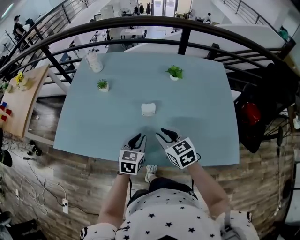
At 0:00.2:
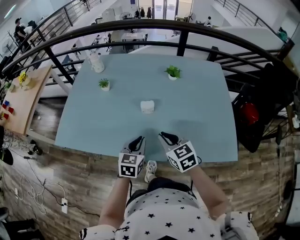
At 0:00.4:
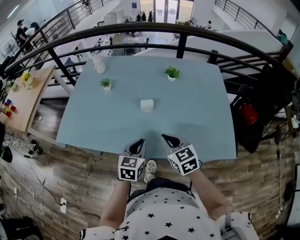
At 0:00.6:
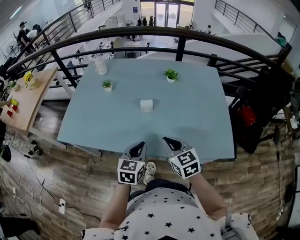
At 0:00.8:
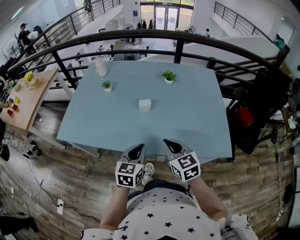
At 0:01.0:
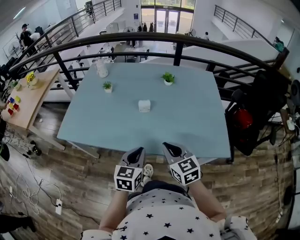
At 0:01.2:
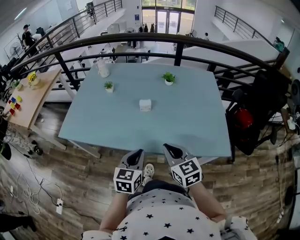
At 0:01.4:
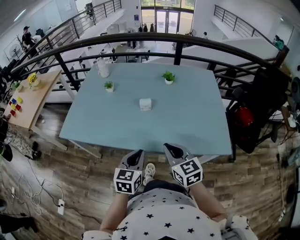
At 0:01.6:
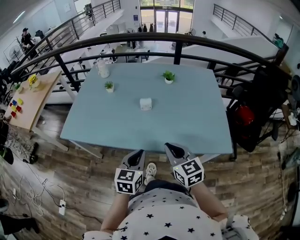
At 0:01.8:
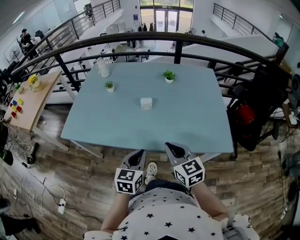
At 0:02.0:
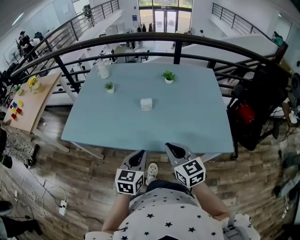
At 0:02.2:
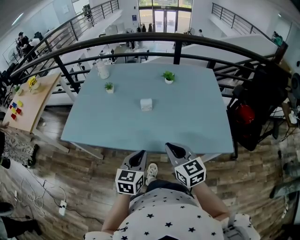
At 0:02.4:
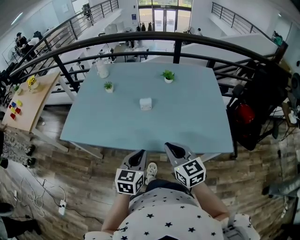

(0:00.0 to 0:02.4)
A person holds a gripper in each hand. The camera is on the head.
0:00.0 - 0:01.2: The left gripper goes approximately 20 cm backward and upward. Meanwhile the right gripper is displaced backward by roughly 20 cm, and closes its fingers.
0:01.2 - 0:02.4: The grippers move only a little.

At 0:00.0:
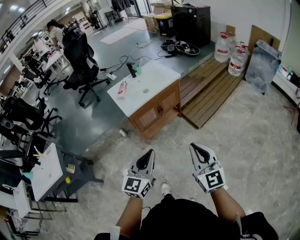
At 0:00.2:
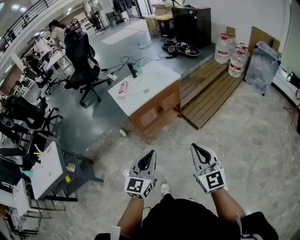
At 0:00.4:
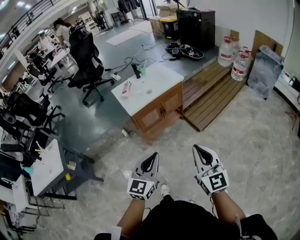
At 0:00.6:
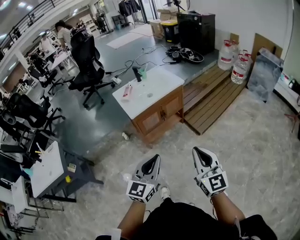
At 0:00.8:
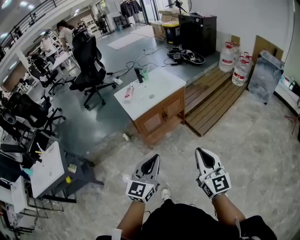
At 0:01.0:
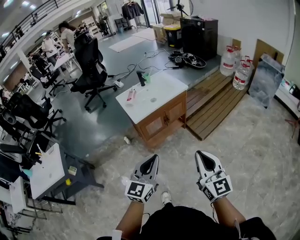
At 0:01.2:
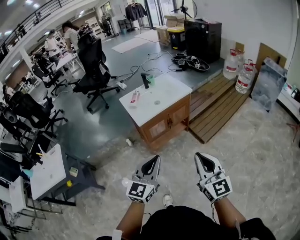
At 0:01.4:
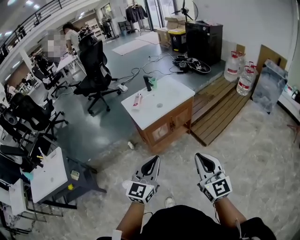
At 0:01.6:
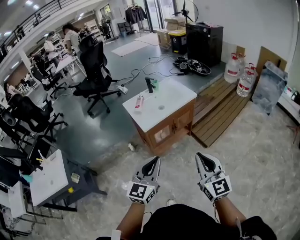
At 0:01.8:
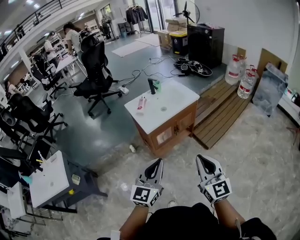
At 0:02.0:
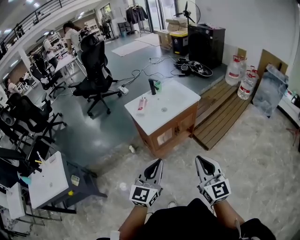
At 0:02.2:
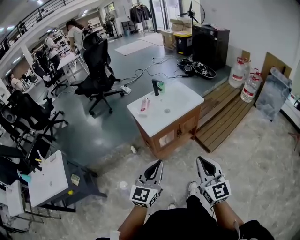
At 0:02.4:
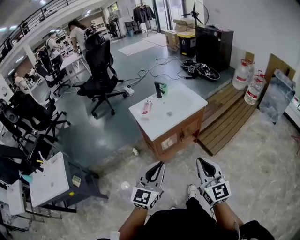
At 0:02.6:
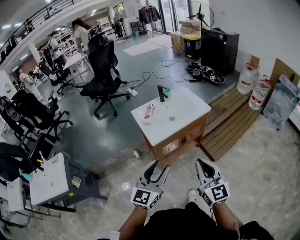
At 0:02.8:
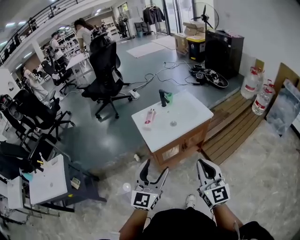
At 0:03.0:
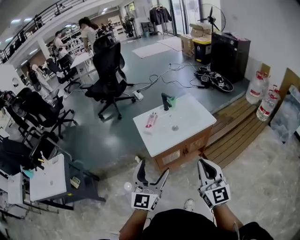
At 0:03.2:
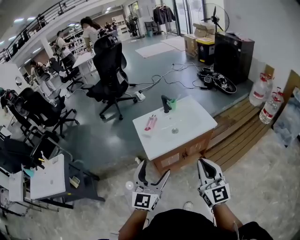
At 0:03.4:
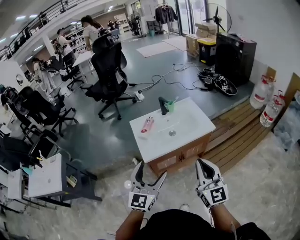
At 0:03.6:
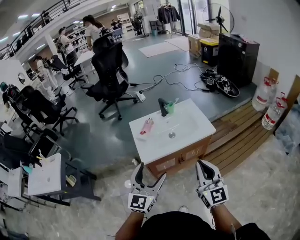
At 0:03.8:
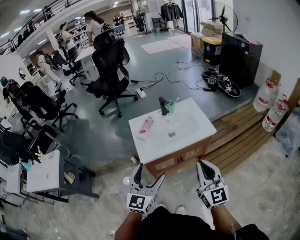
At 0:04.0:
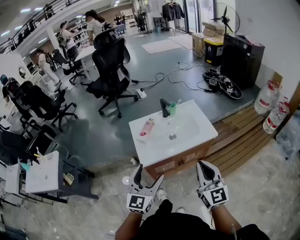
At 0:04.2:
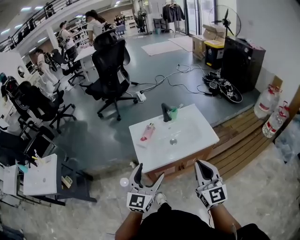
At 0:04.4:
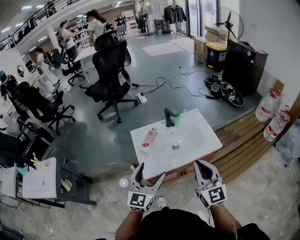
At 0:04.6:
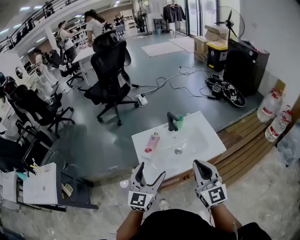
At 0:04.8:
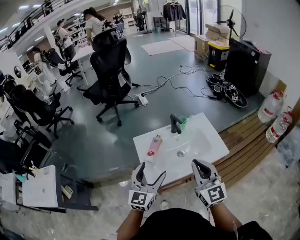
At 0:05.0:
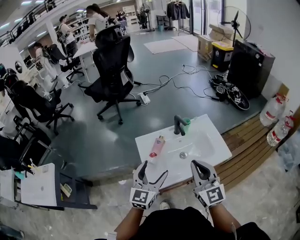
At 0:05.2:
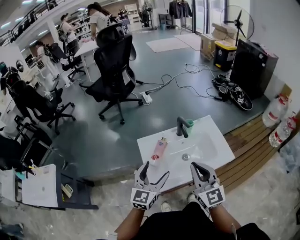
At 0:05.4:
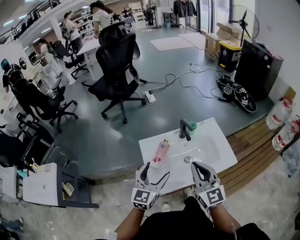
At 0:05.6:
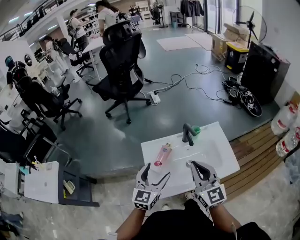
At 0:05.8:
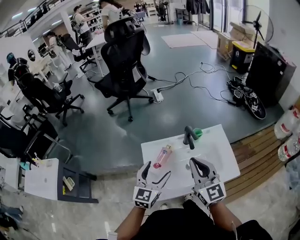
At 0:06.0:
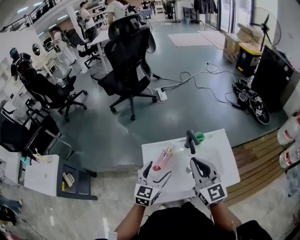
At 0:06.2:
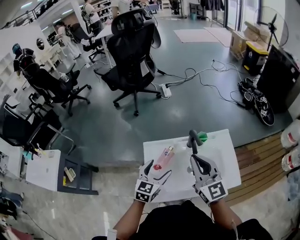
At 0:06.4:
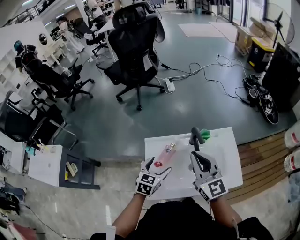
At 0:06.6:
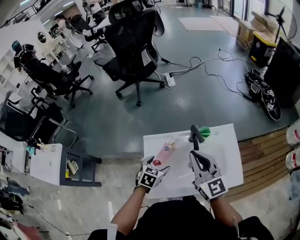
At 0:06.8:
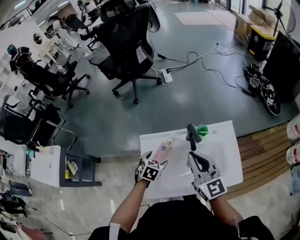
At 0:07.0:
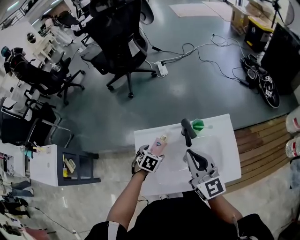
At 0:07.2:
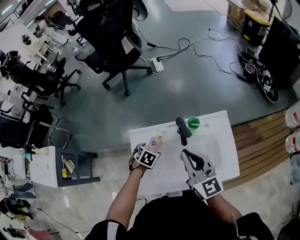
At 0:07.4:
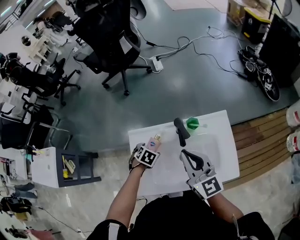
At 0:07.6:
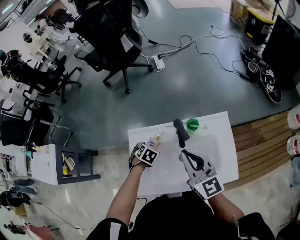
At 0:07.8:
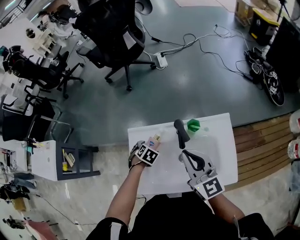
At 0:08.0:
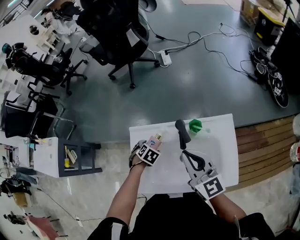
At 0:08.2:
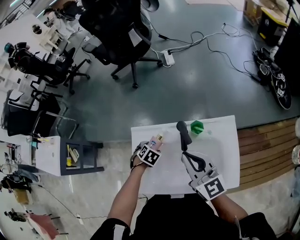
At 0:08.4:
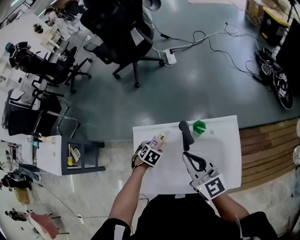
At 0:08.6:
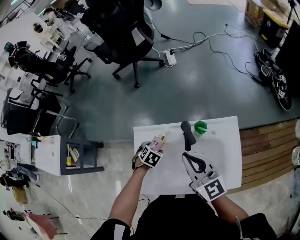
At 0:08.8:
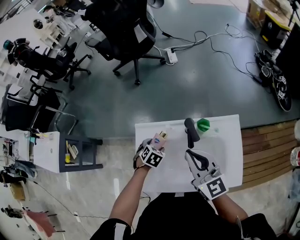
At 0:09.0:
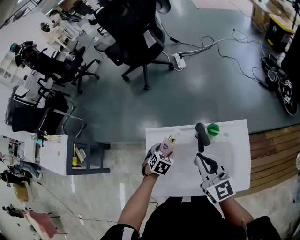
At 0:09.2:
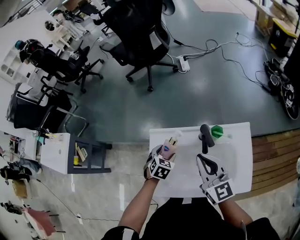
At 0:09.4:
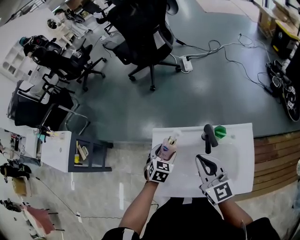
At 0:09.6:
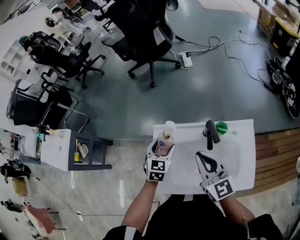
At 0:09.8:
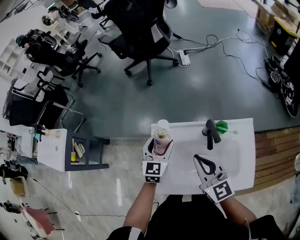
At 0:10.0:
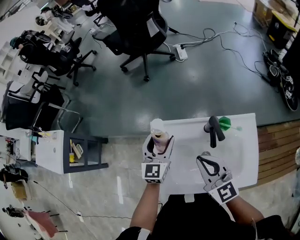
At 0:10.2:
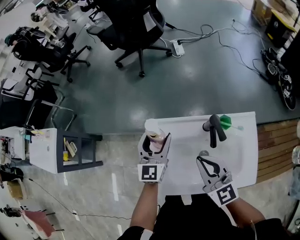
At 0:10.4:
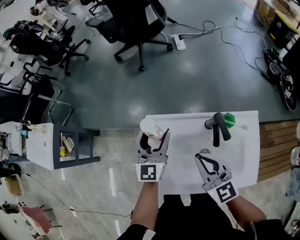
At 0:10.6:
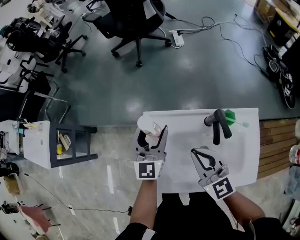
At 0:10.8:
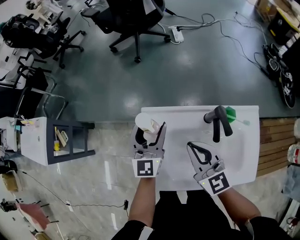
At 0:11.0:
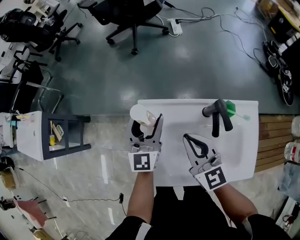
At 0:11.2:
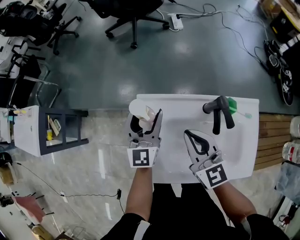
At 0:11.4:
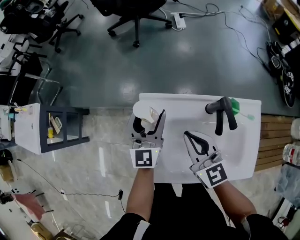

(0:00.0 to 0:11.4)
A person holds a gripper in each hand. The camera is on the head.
0:00.0 - 0:01.4: Both grippers move to the left, approximately 10 cm.
0:01.4 - 0:02.8: Both grippers travel together forward, about 20 cm. The left gripper opens.
0:02.8 - 0:04.2: The two grippers go approximately 20 cm forward.
0:04.2 - 0:05.6: The left gripper heads forward, covering about 25 cm; the right gripper shifts some 30 cm forward and to the left.
0:05.6 - 0:07.2: The right gripper goes about 20 cm forward, to the right and downward. Meanwhile the left gripper shifts about 30 cm downward and forward, and tilts its fingers approximately 60 degrees downward.
0:07.2 - 0:08.6: The grippers stay close to where they were, moving slightly.
0:08.6 - 0:10.0: The right gripper ends up approximately 10 cm from where it was. The left gripper travels upward by roughly 15 cm, and tips its fingers upward by approximately 60 degrees.
0:10.0 - 0:11.4: The right gripper is displaced downward and forward by some 10 cm. The left gripper moves roughly 5 cm.

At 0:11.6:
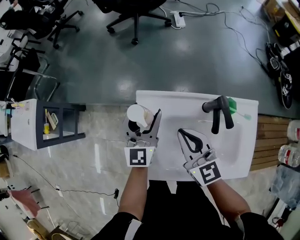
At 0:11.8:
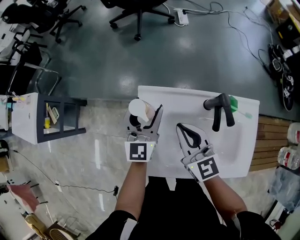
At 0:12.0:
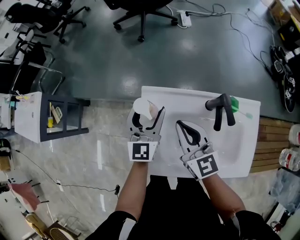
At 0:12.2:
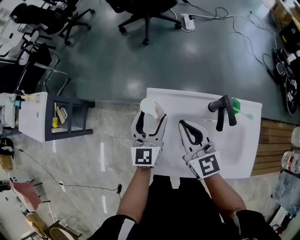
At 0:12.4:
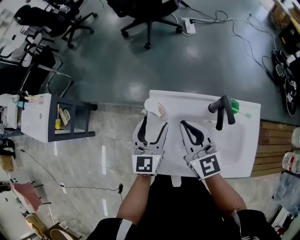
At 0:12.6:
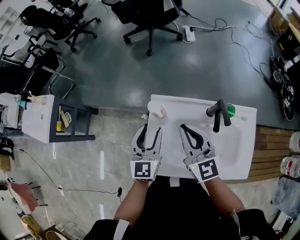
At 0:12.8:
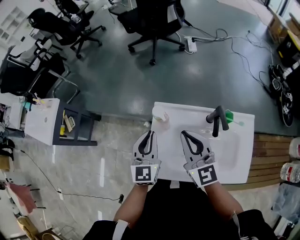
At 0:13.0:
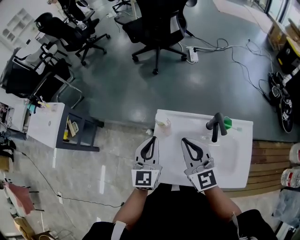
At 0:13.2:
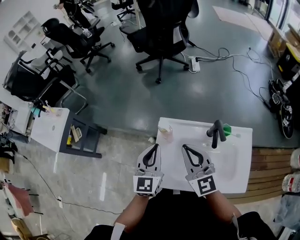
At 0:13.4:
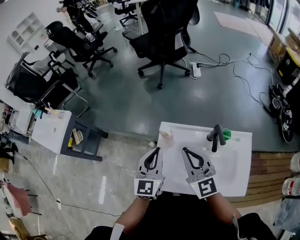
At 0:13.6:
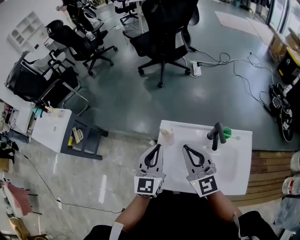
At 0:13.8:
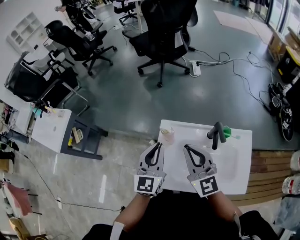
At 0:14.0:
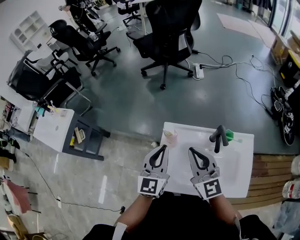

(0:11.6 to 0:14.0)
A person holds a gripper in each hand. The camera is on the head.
0:11.6 - 0:12.8: The right gripper travels upward by approximately 10 cm; the left gripper is displaced backward, upward and to the left by roughly 15 cm, and closes.
0:12.8 - 0:14.0: The left gripper travels upward by approximately 10 cm; the right gripper is displaced upward by roughly 5 cm.

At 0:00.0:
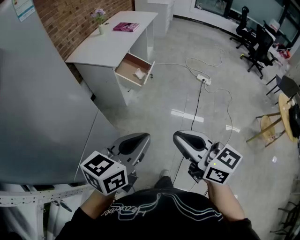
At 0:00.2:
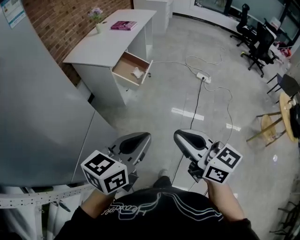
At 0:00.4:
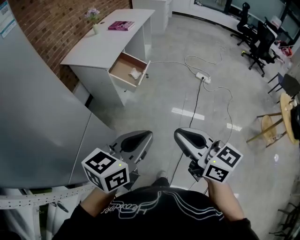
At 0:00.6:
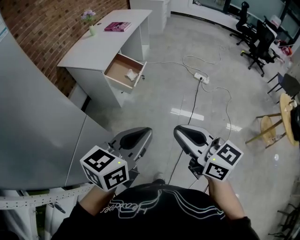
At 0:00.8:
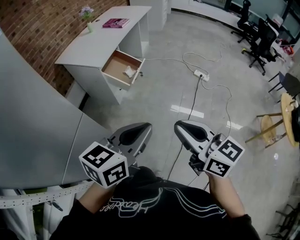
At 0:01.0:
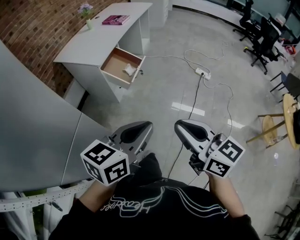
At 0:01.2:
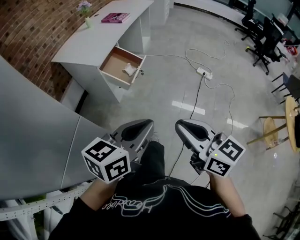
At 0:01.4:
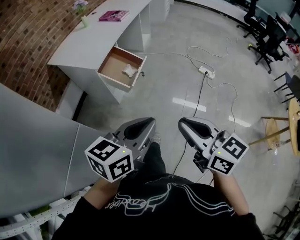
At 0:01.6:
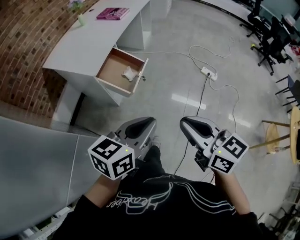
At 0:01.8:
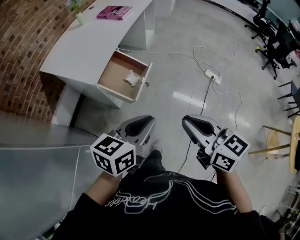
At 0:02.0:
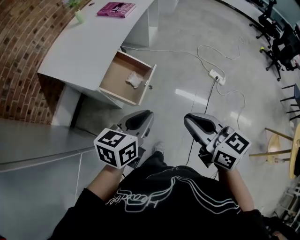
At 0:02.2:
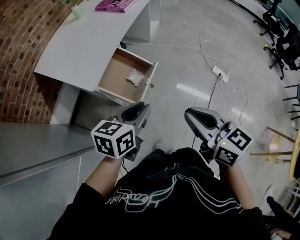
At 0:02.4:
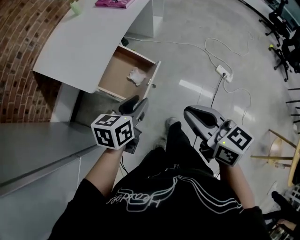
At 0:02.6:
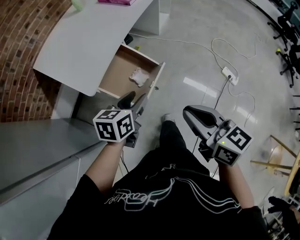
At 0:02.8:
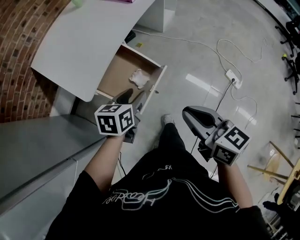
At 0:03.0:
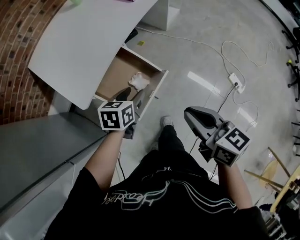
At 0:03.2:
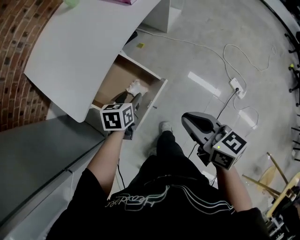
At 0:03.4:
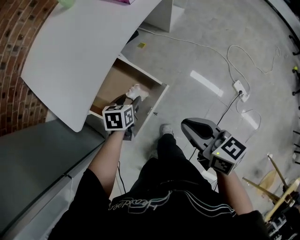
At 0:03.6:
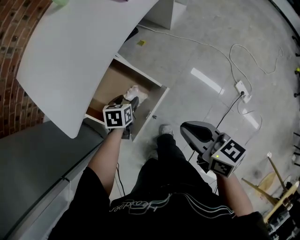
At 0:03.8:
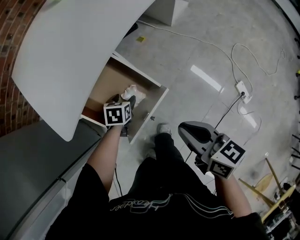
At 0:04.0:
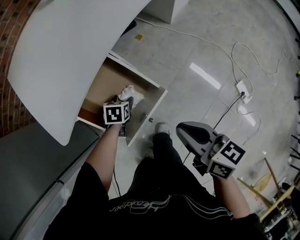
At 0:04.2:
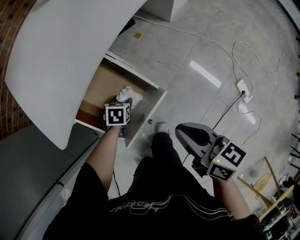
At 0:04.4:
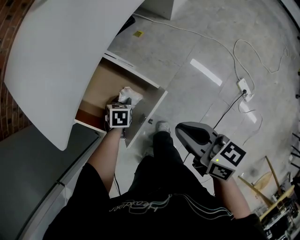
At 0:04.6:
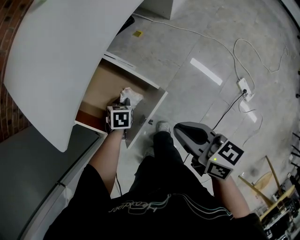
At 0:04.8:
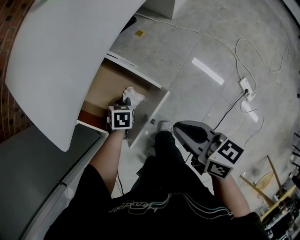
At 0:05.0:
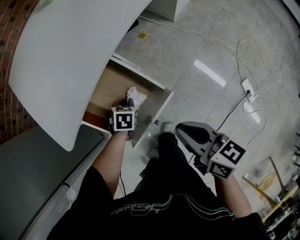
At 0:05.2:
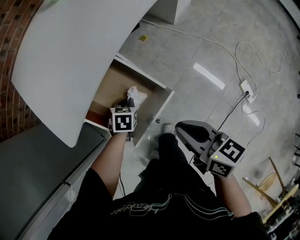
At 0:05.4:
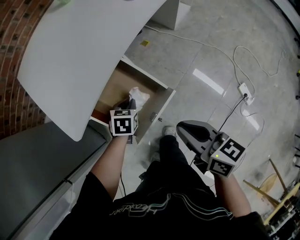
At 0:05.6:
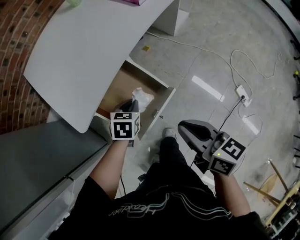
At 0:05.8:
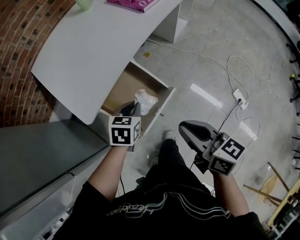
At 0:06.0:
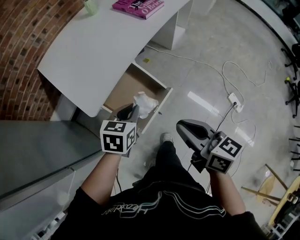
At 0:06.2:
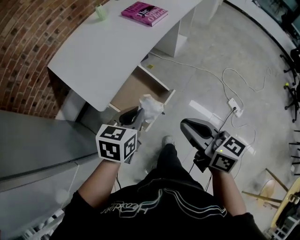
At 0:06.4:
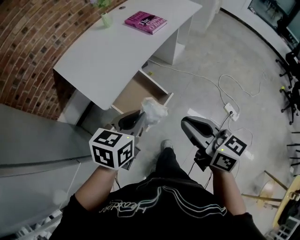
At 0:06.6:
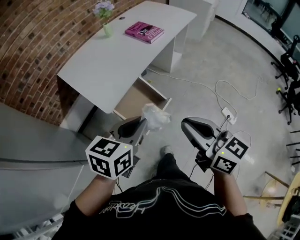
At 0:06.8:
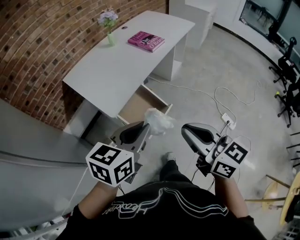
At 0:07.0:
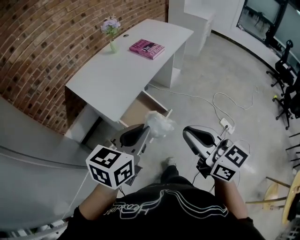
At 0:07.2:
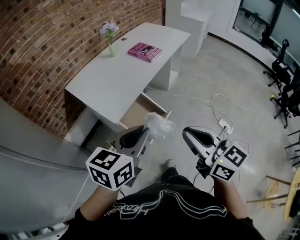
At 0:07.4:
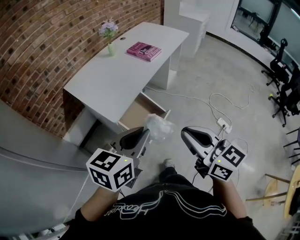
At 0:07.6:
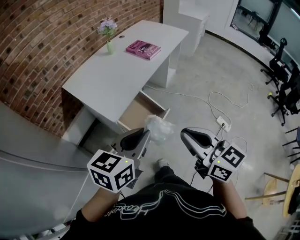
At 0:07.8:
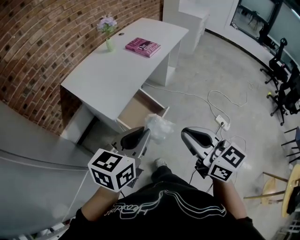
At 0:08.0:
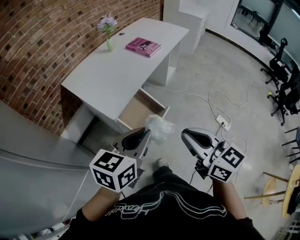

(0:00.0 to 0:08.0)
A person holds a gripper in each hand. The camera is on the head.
0:00.0 - 0:01.6: The grippers both shift forward and to the right by some 30 cm.
0:01.6 - 0:03.2: Both grippers are carried forward, some 50 cm. The left gripper heads downward, covering roughly 35 cm, angles its fingers downward, by approximately 30 degrees, and opens its fingers. Meanwhile the right gripper goes approximately 20 cm downward, and changes its angle by roughly 20 degrees.
0:03.2 - 0:04.8: The left gripper travels downward by roughly 20 cm, changes its angle by roughly 30 degrees, and closes its fingers. Meanwhile the right gripper shifts roughly 15 cm downward and forward.
0:04.8 - 0:06.4: The right gripper goes roughly 30 cm upward and backward, and turns by some 20 degrees, while the left gripper travels upward and backward by some 50 cm, and tips its fingers upward by roughly 40 degrees.
0:06.4 - 0:08.0: The right gripper travels backward and upward by some 15 cm. Meanwhile the left gripper moves upward and backward, roughly 15 cm.
